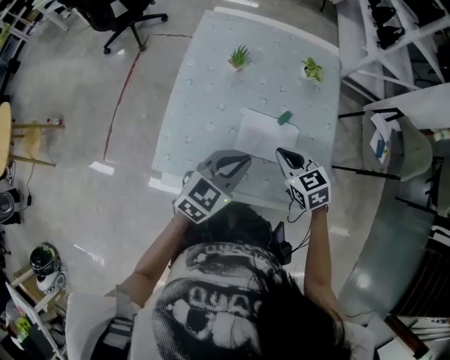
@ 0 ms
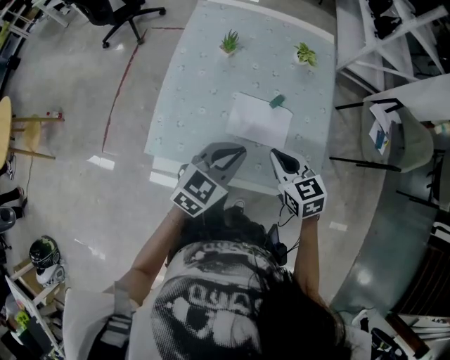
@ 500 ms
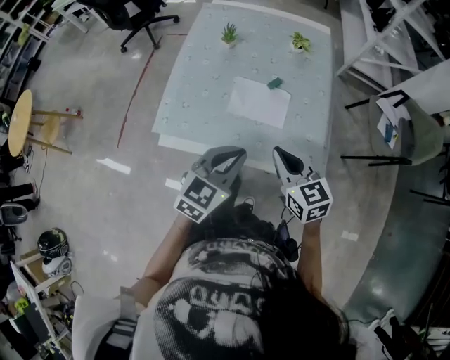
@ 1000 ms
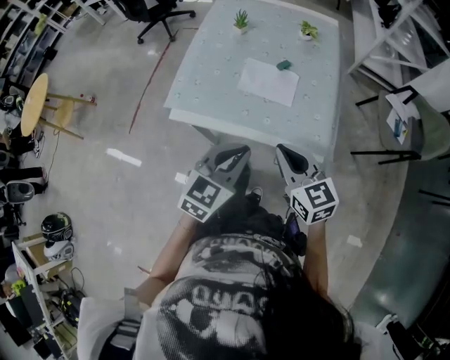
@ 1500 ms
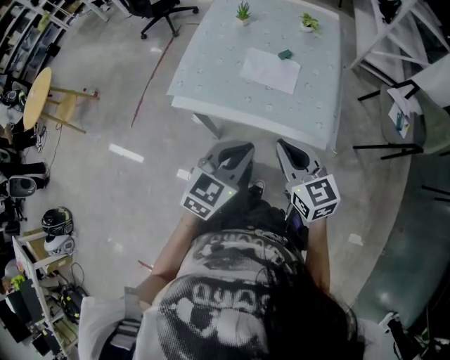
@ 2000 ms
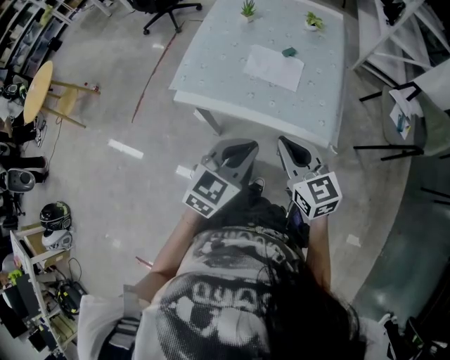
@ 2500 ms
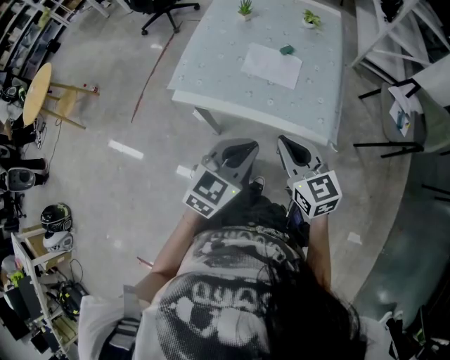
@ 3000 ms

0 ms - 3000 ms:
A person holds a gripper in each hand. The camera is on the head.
0 ms - 1500 ms: Both grippers travel together backward, roughly 25 cm. The right gripper turns by some 20 degrees.
1500 ms - 3000 ms: The left gripper goes roughly 5 cm backward.

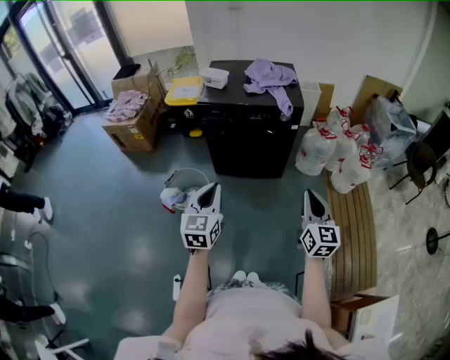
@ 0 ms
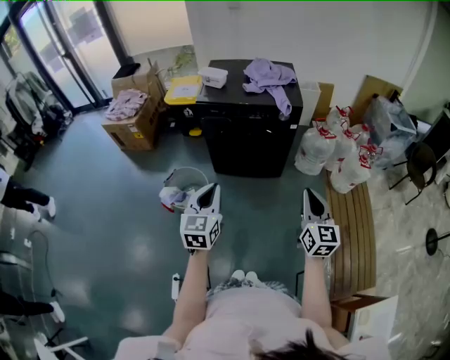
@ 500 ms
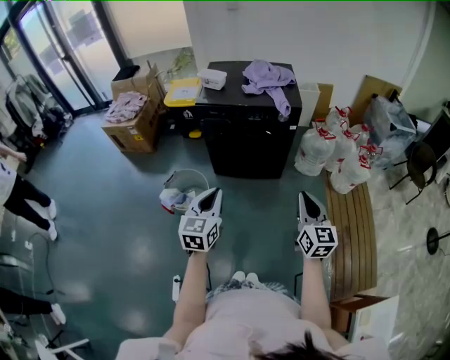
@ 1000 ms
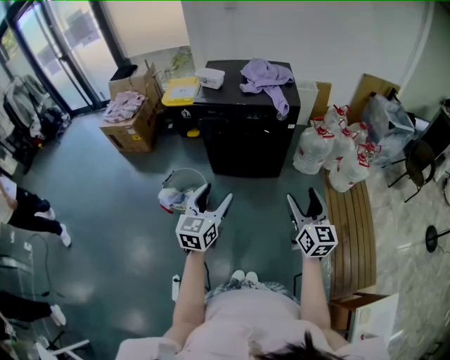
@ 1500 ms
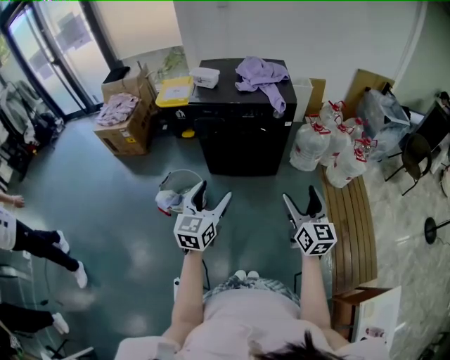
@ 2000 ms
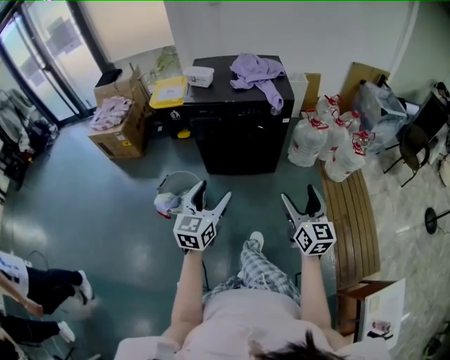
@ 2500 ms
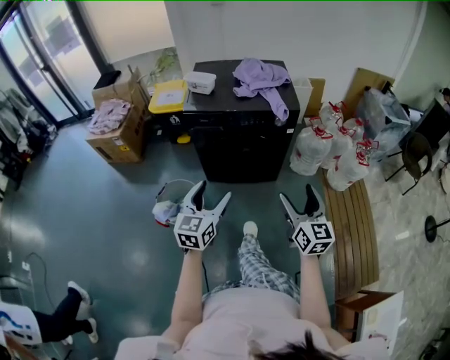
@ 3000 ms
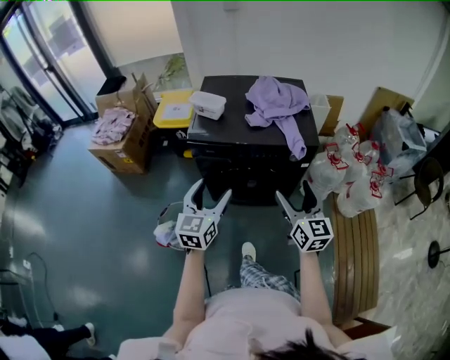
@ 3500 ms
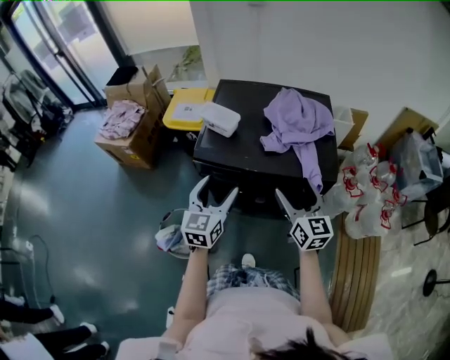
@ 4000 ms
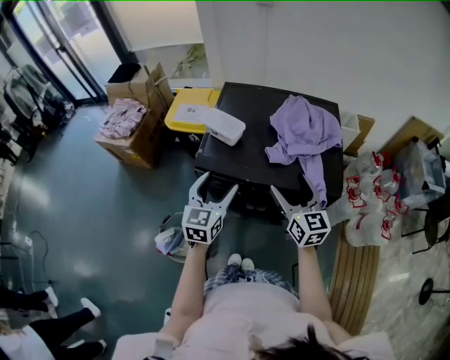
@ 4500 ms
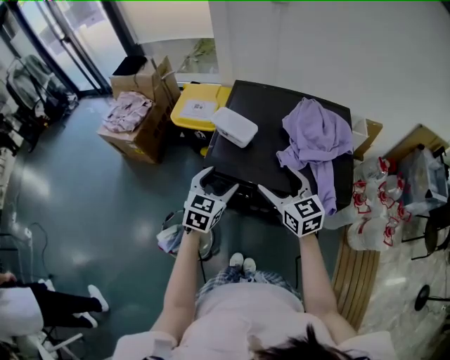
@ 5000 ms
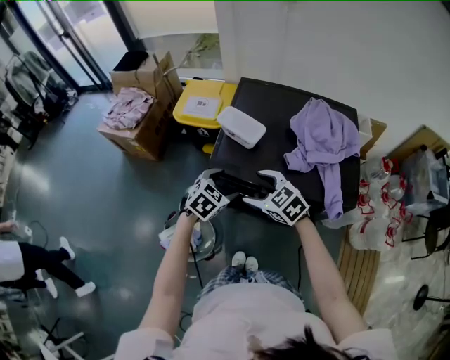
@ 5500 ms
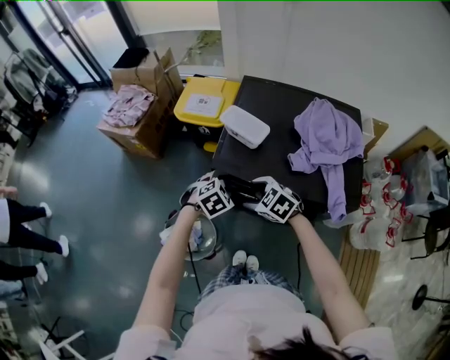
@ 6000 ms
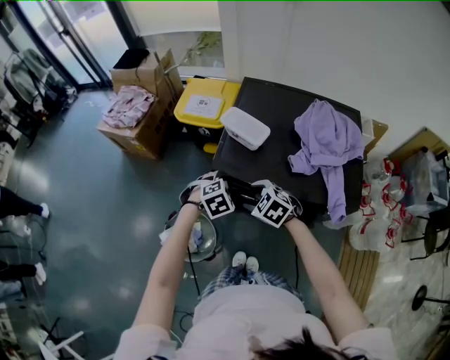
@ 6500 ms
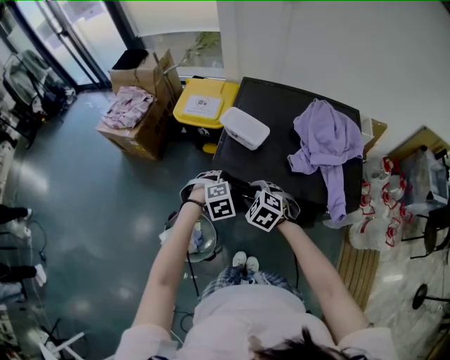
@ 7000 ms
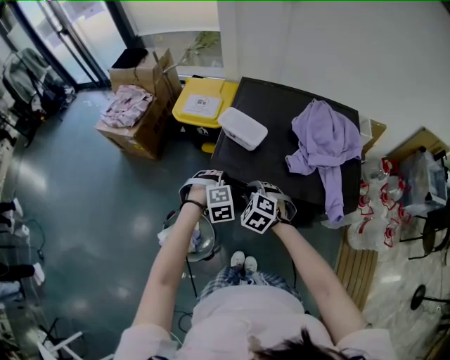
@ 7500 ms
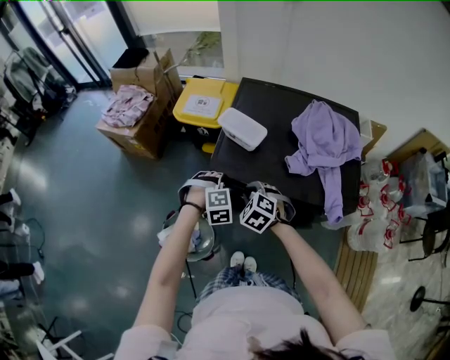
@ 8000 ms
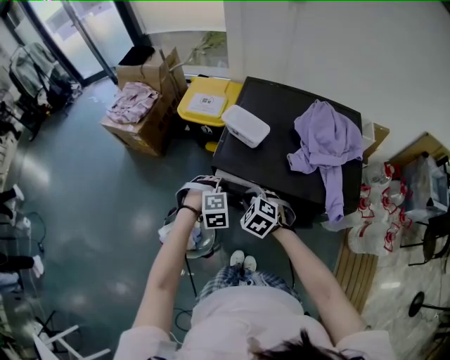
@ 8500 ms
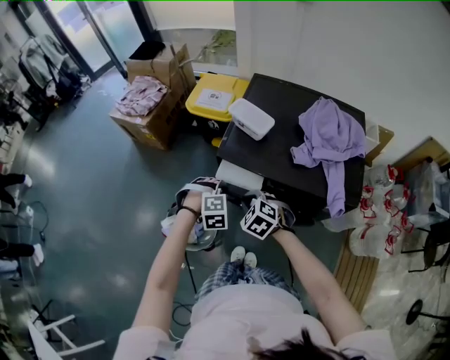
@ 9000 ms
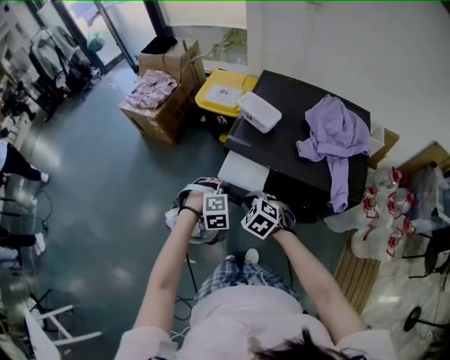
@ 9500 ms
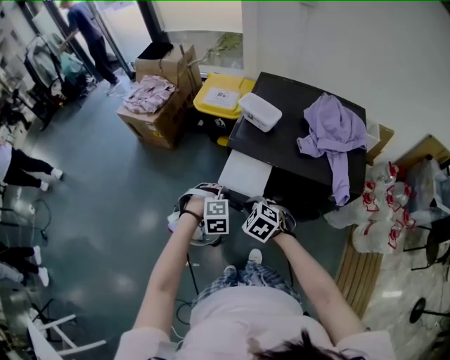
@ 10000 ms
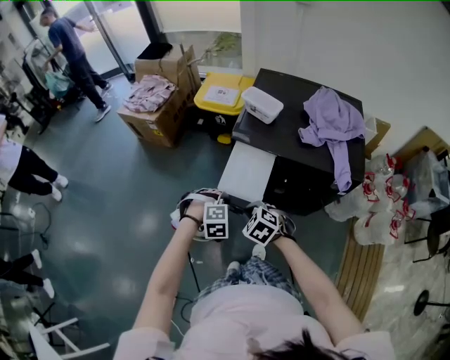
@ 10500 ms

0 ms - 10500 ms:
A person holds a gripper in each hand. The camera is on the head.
0 ms - 2000 ms: The right gripper opens. Meanwhile the left gripper opens.
2000 ms - 4000 ms: Both grippers are carried forward, approximately 50 cm.
4000 ms - 6500 ms: The left gripper goes about 20 cm downward and forward, and angles its fingers downward, by some 50 degrees. Meanwhile the right gripper shifts roughly 30 cm to the left, downward and forward, tips its fingers downward by about 50 degrees, and closes.
6500 ms - 8500 ms: The left gripper rotates approximately 20 degrees, and closes. Meanwhile the right gripper closes up.
8500 ms - 10500 ms: The grippers both shift backward and to the left by roughly 20 cm.

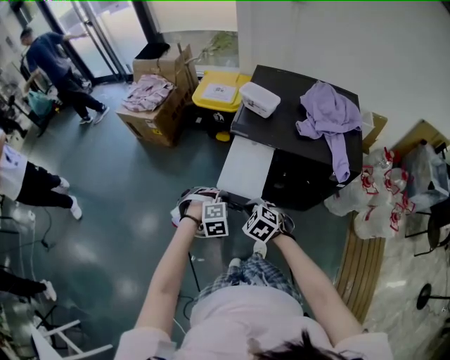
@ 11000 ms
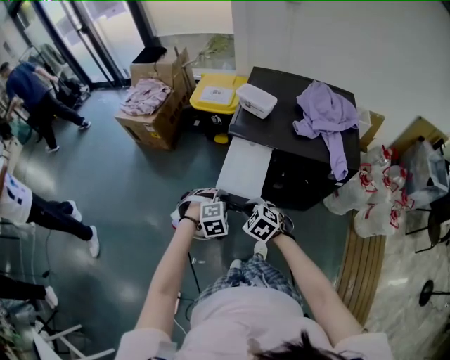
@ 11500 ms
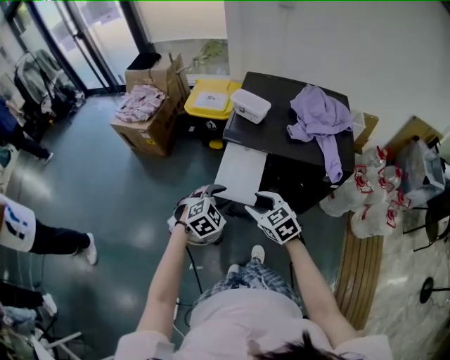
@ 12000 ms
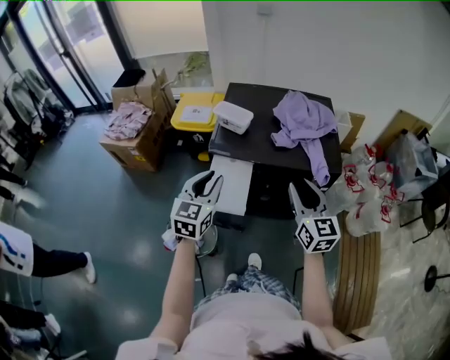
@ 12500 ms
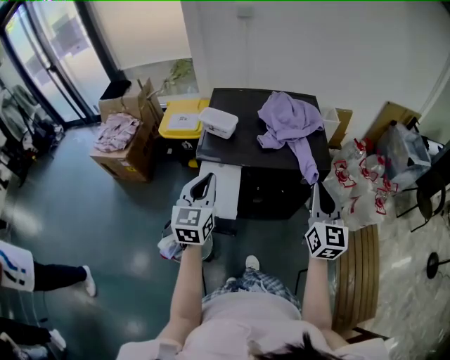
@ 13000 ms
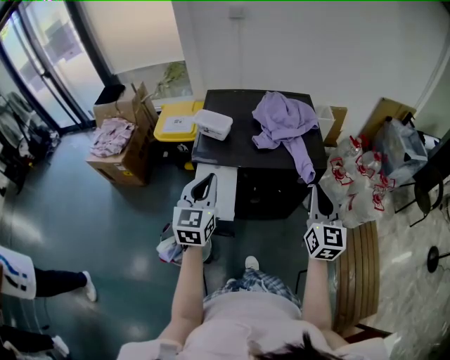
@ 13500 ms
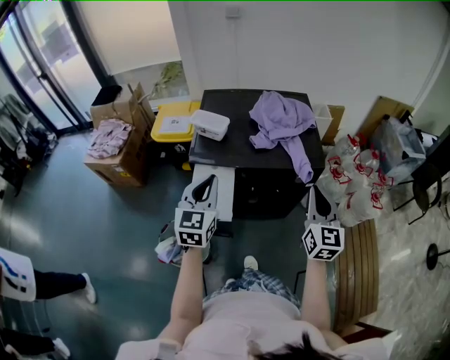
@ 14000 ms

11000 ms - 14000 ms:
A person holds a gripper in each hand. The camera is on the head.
11000 ms - 12500 ms: The left gripper is displaced upward by about 20 cm, and tilts its fingers some 50 degrees upward; the right gripper shifts about 30 cm upward and to the right, and tilts its fingers roughly 50 degrees upward.
12500 ms - 14000 ms: The right gripper moves to the right, approximately 10 cm, and changes its angle by approximately 20 degrees, while the left gripper changes place by some 5 cm.

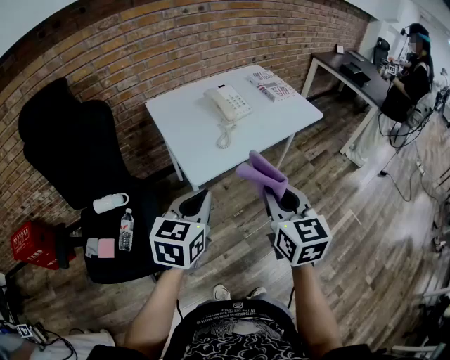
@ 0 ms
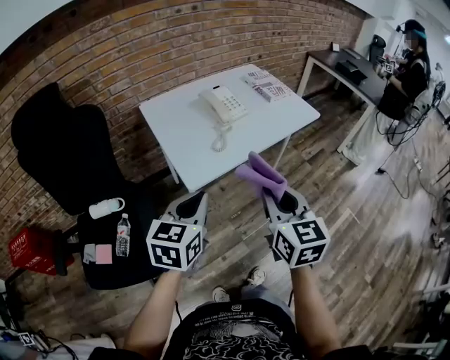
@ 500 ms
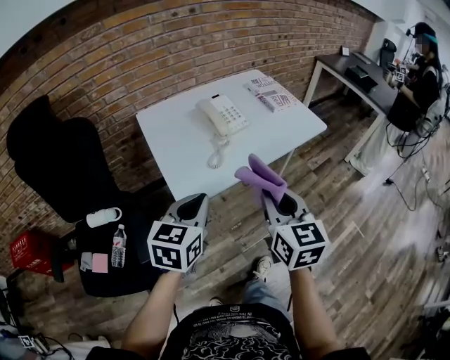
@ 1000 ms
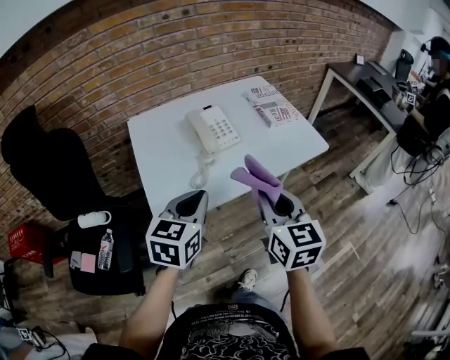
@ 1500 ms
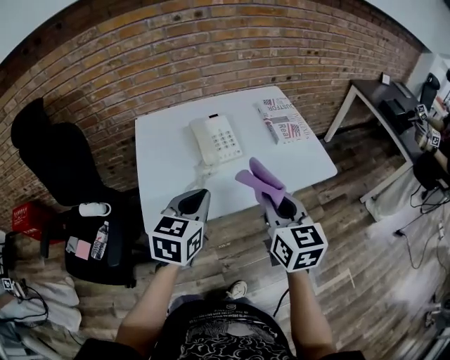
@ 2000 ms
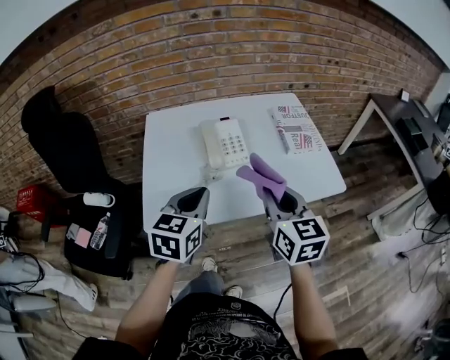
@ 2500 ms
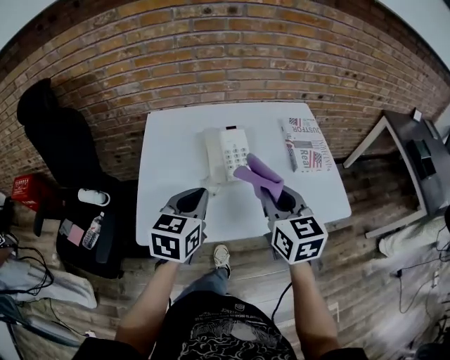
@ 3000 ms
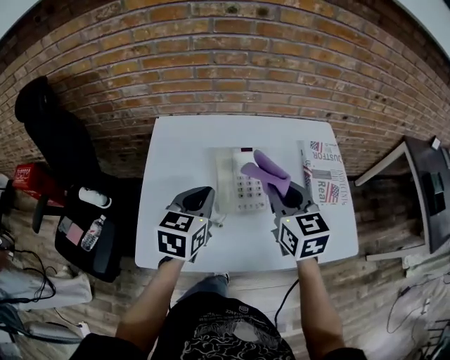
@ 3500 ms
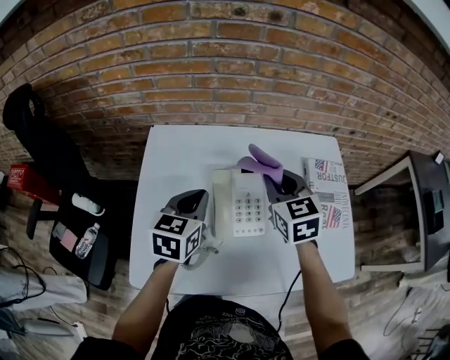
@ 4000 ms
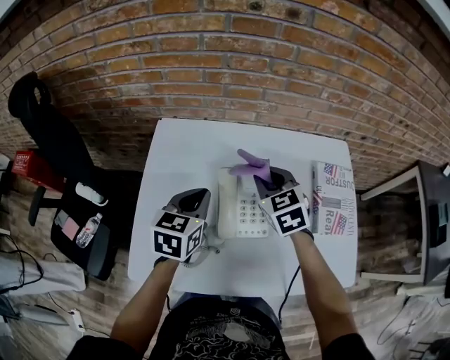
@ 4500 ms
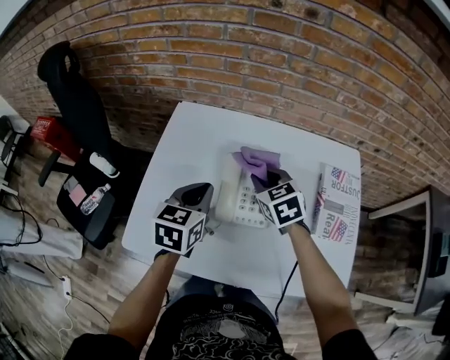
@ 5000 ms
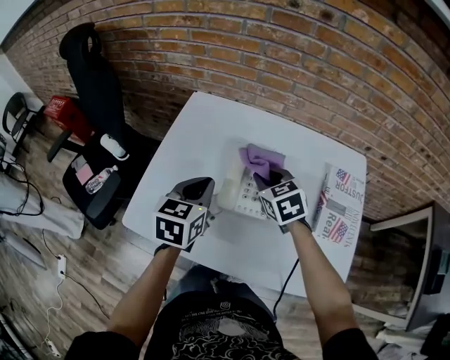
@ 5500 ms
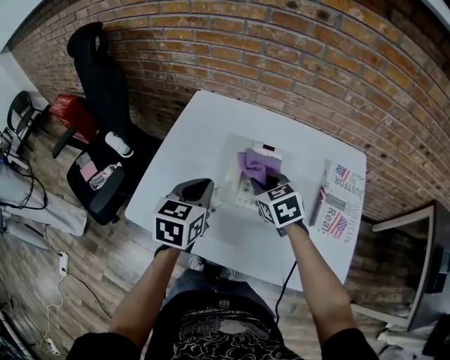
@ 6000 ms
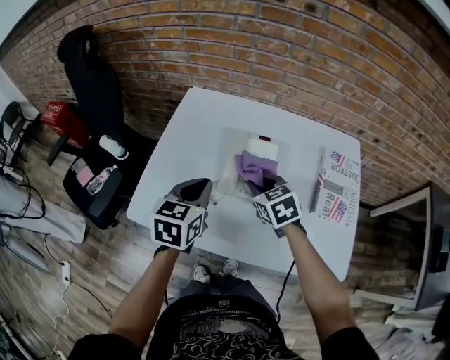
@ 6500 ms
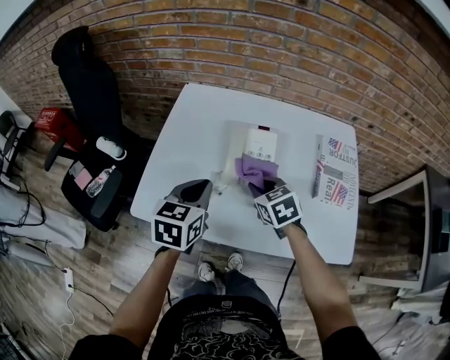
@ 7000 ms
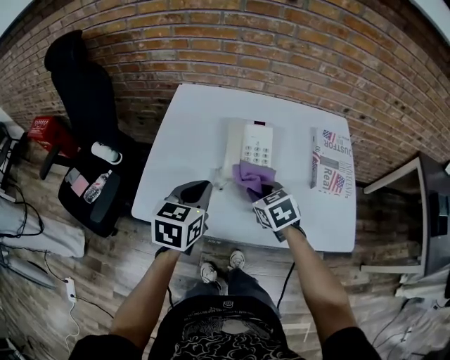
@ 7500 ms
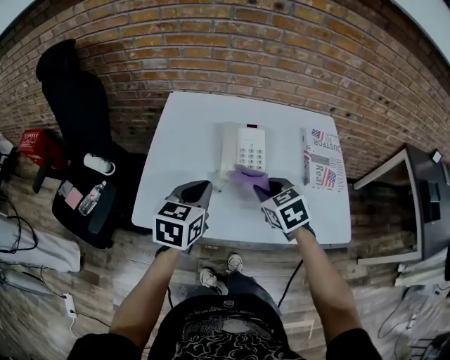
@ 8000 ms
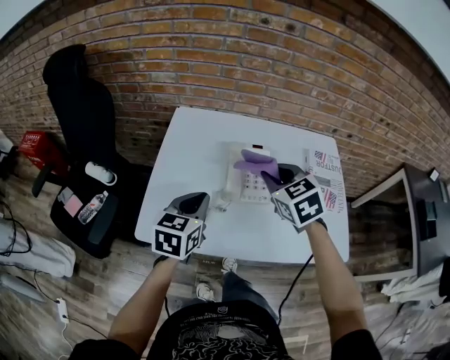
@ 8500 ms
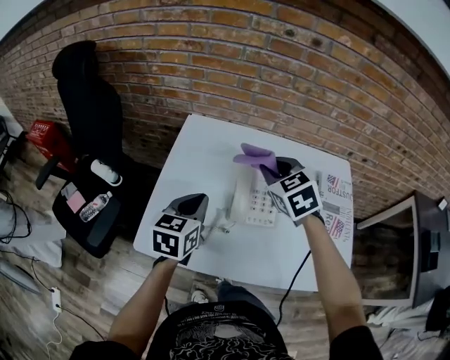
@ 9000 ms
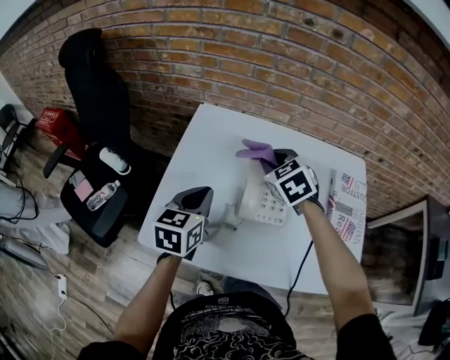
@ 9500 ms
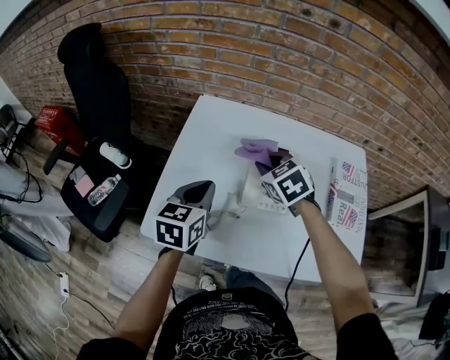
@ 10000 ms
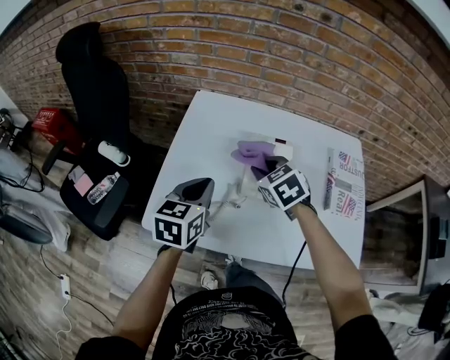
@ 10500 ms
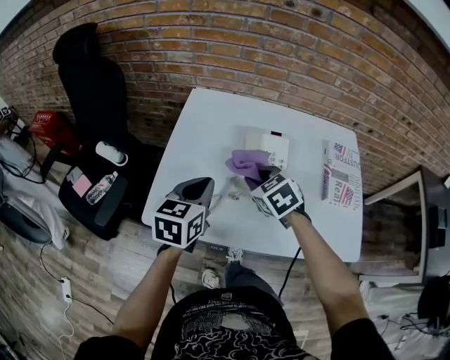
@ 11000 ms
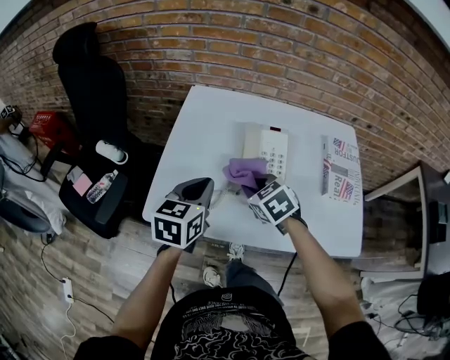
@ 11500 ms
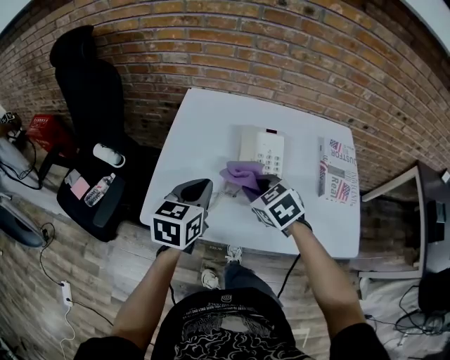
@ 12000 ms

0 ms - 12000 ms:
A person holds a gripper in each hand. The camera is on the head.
0 ms - 2000 ms: Both grippers move forward and to the right, some 30 cm.
2000 ms - 4000 ms: The grippers both shift forward by about 35 cm. The right gripper turns by about 30 degrees.
4000 ms - 6000 ms: The right gripper goes approximately 15 cm downward, backward and to the left, and swivels approximately 30 degrees. The left gripper is displaced backward by roughly 10 cm.
6000 ms - 8000 ms: The right gripper heads backward, covering approximately 10 cm, while the left gripper moves backward, about 5 cm.
8000 ms - 10000 ms: The left gripper heads forward and to the left, covering approximately 10 cm; the right gripper shifts roughly 15 cm forward and to the left.
10000 ms - 12000 ms: The right gripper goes approximately 15 cm backward. The left gripper goes approximately 5 cm backward.
